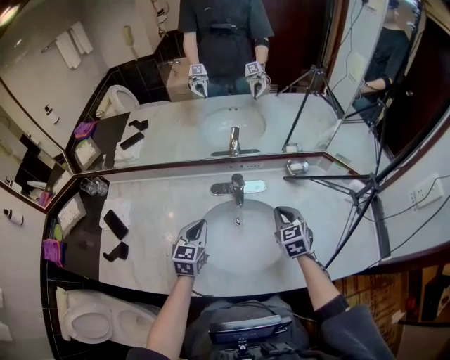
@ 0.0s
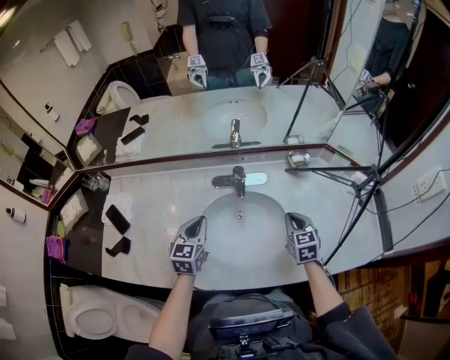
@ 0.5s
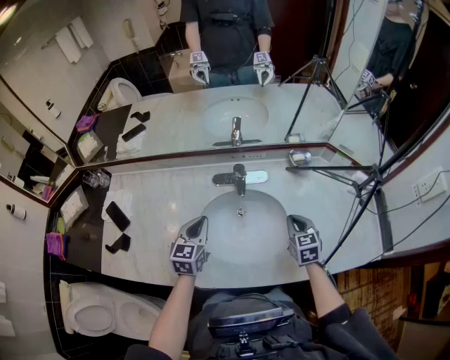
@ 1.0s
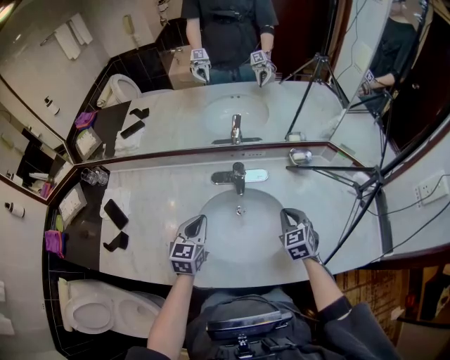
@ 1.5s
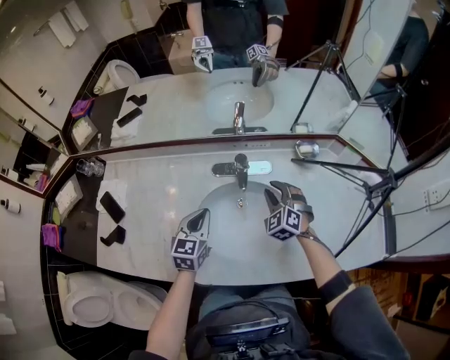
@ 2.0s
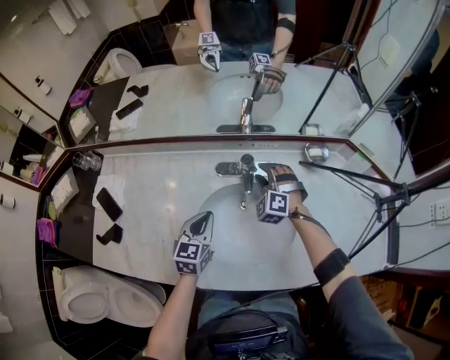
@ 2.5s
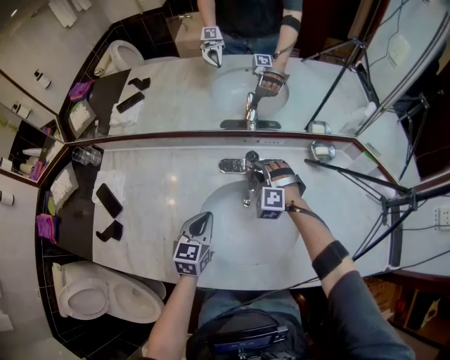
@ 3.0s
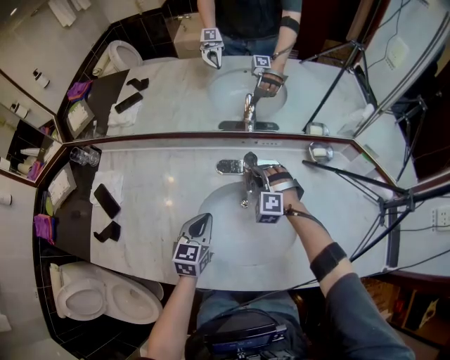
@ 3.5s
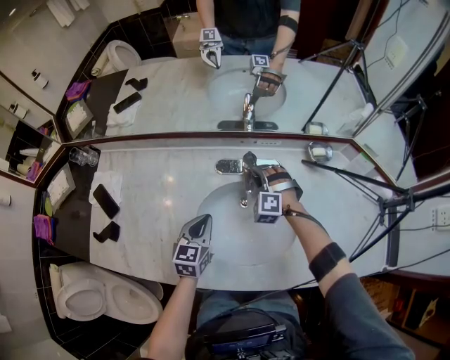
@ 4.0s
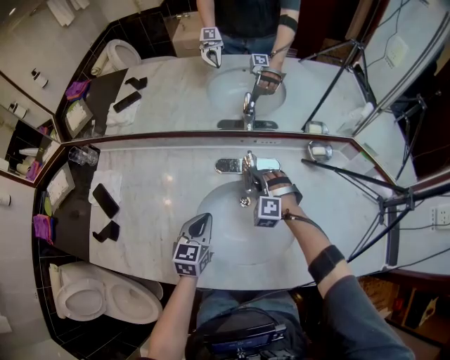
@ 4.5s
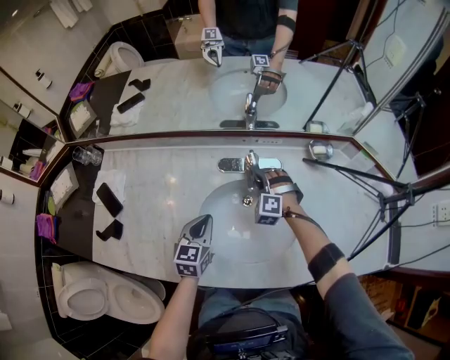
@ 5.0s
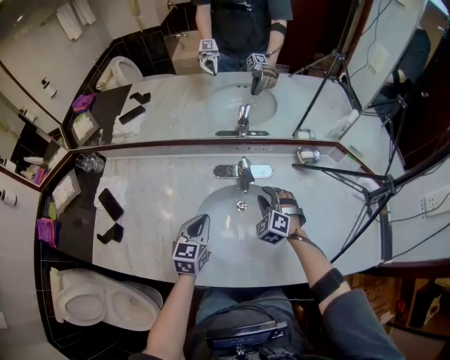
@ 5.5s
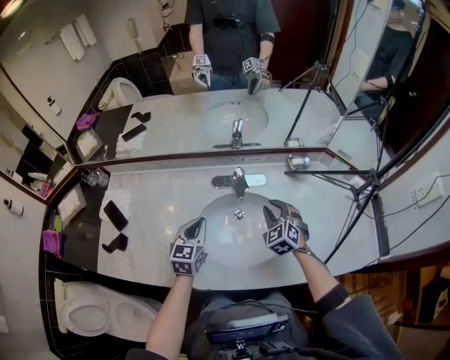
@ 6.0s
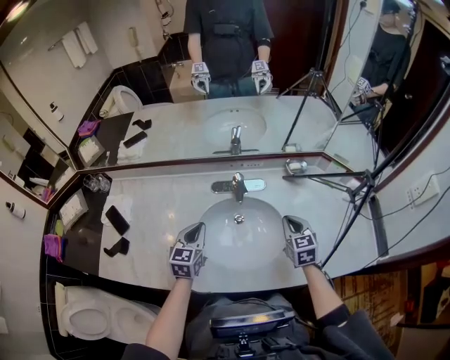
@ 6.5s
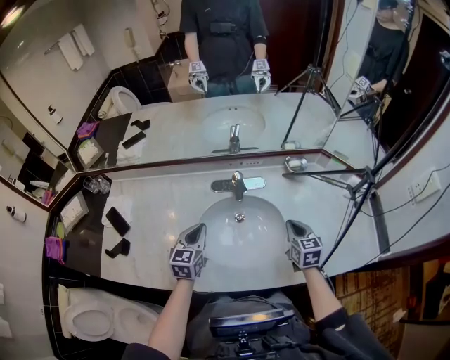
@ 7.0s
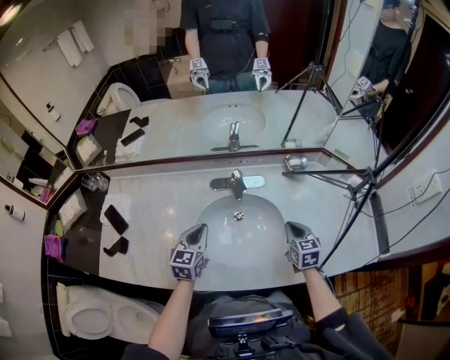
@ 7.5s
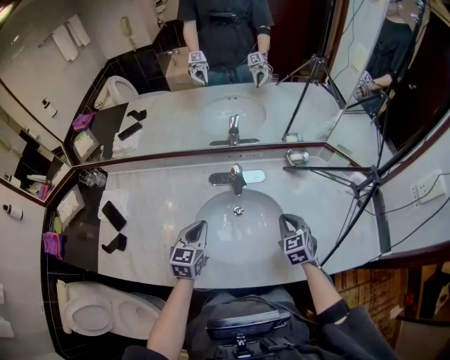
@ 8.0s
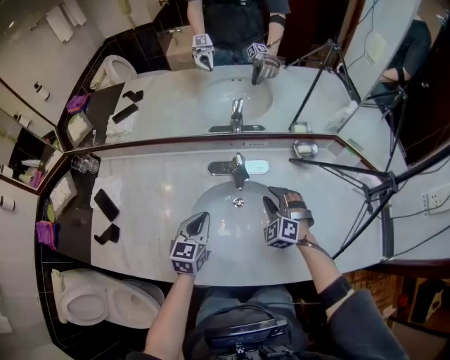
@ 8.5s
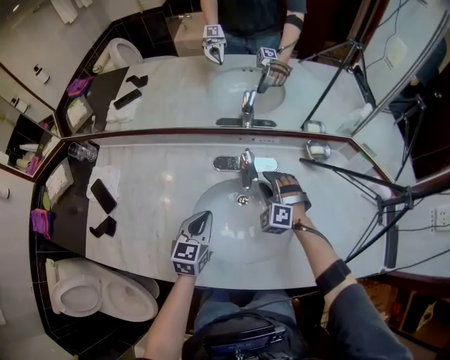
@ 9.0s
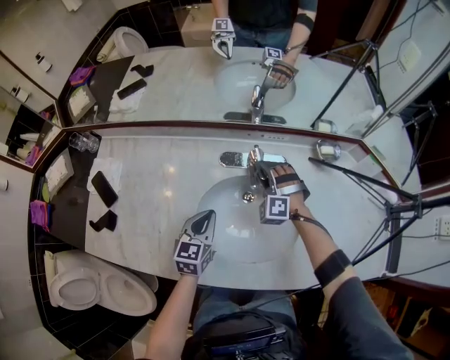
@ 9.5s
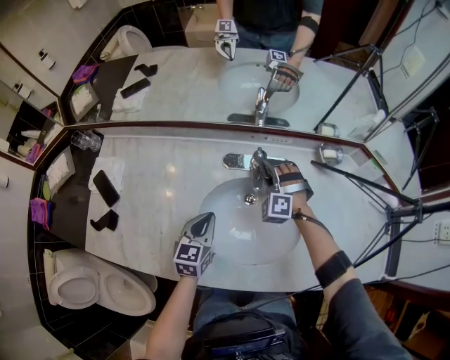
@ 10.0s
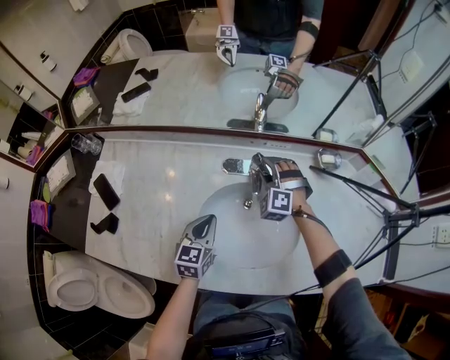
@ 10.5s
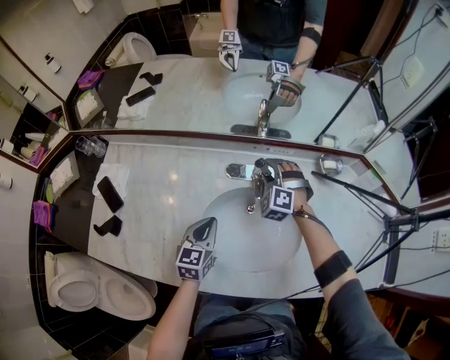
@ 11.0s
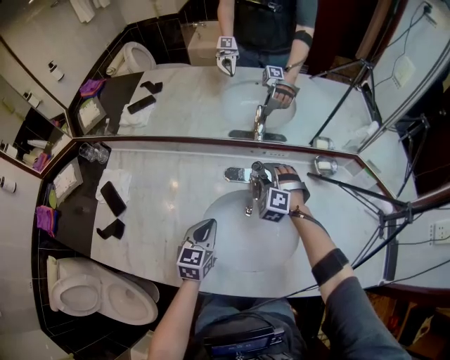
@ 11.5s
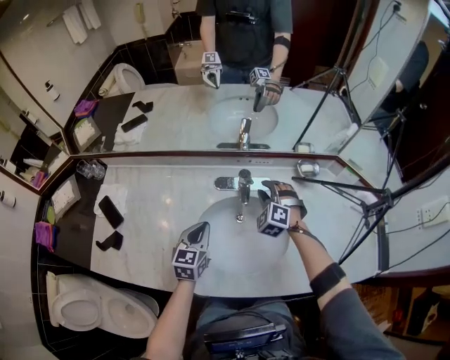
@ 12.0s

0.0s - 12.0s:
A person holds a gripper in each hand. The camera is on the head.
0.0s - 2.0s: The right gripper moves approximately 10 cm, swivels approximately 30 degrees, and opens.
2.0s - 4.0s: The right gripper goes some 15 cm to the left, forward and downward, and changes its angle by about 30 degrees. The left gripper travels downward by roughly 5 cm.
4.0s - 6.0s: The left gripper goes roughly 5 cm upward. The right gripper travels backward, upward and to the right by some 20 cm, and rotates roughly 40 degrees.
6.0s - 8.0s: The right gripper travels to the right by some 5 cm, and turns by about 20 degrees.
8.0s - 10.0s: The left gripper heads downward, covering approximately 10 cm. The right gripper shifts roughly 25 cm forward and to the left, twists about 60 degrees counterclockwise, seen from behind, and opens up.
10.0s - 12.0s: The two grippers go about 5 cm upward. The right gripper closes its fingers.

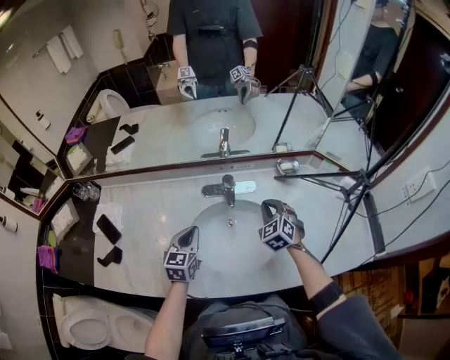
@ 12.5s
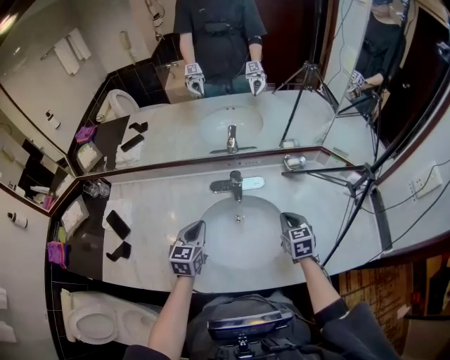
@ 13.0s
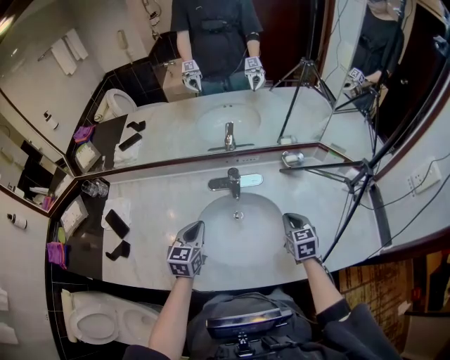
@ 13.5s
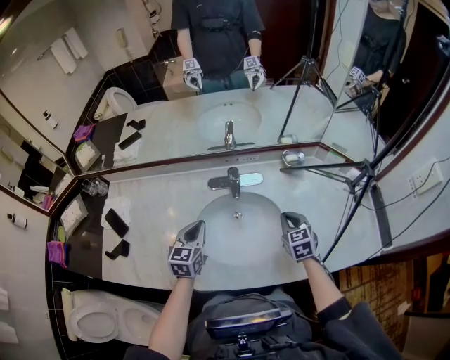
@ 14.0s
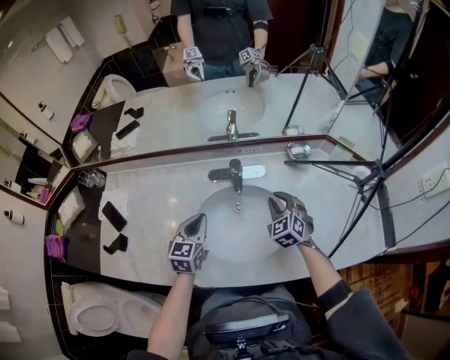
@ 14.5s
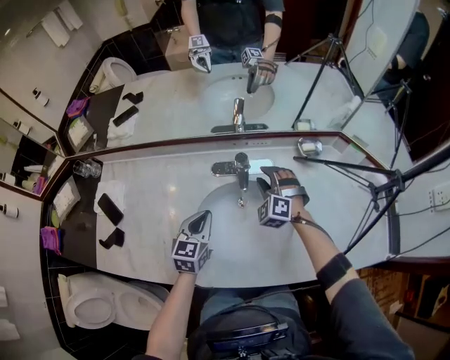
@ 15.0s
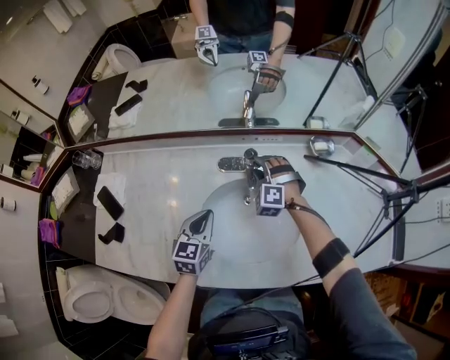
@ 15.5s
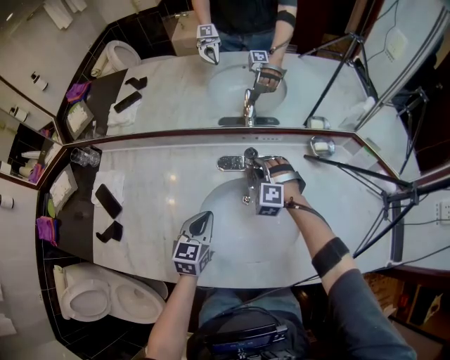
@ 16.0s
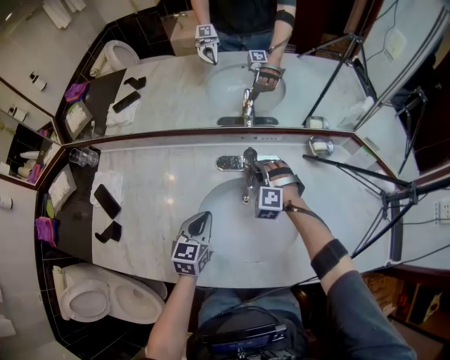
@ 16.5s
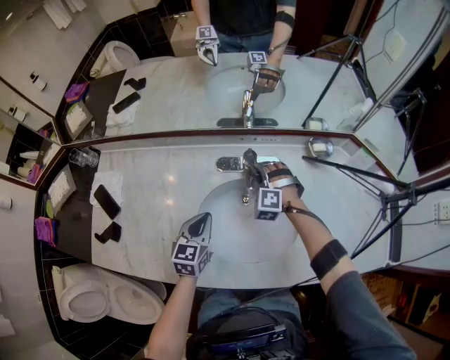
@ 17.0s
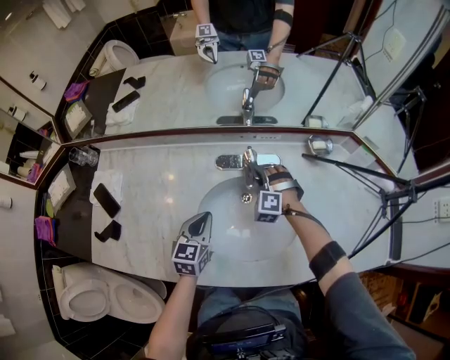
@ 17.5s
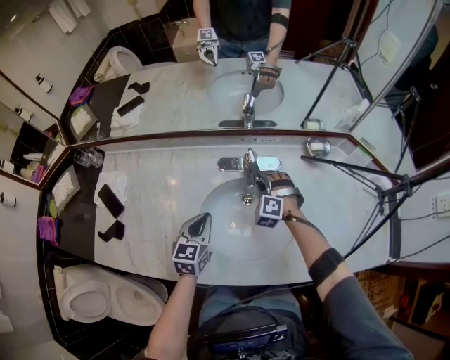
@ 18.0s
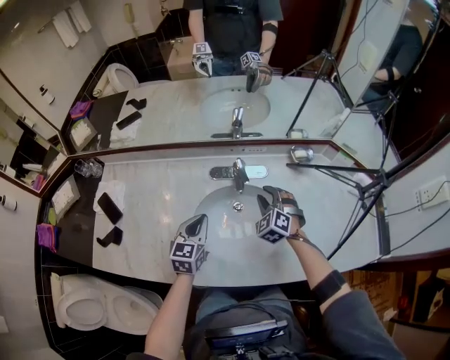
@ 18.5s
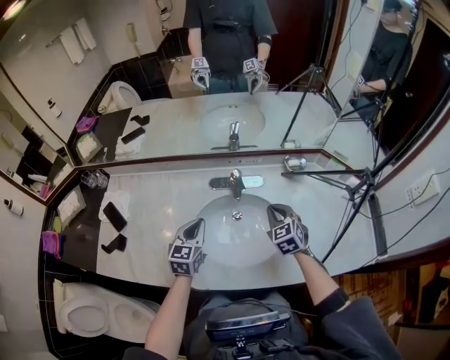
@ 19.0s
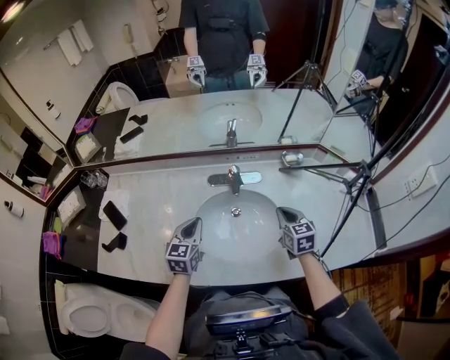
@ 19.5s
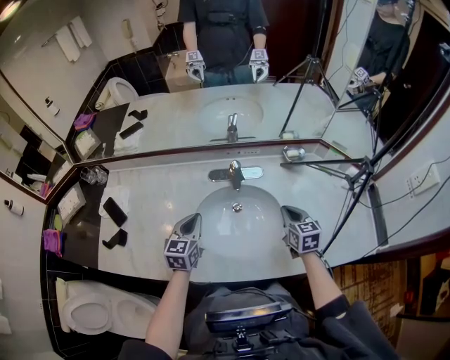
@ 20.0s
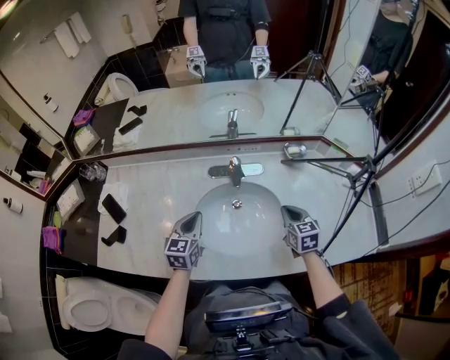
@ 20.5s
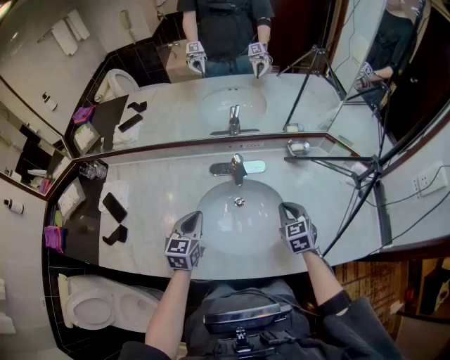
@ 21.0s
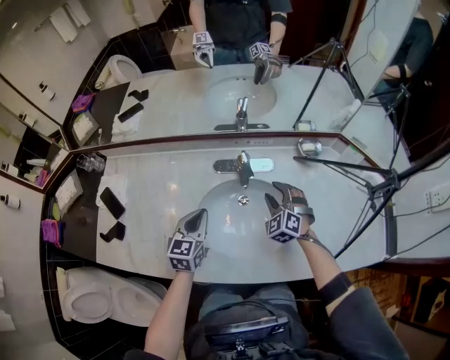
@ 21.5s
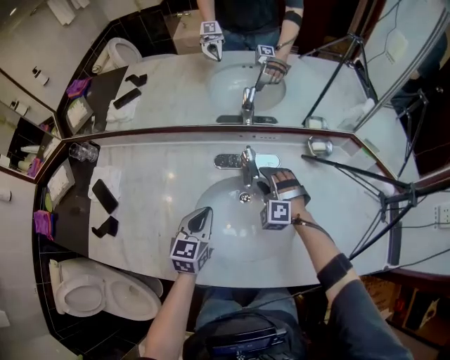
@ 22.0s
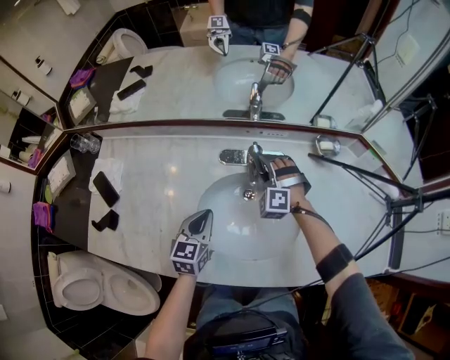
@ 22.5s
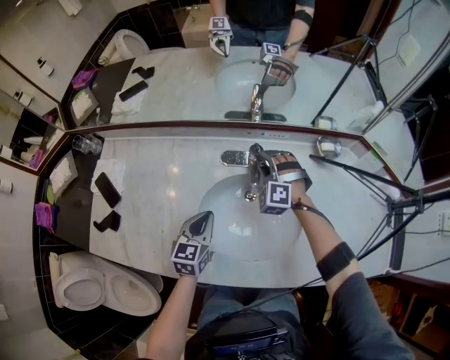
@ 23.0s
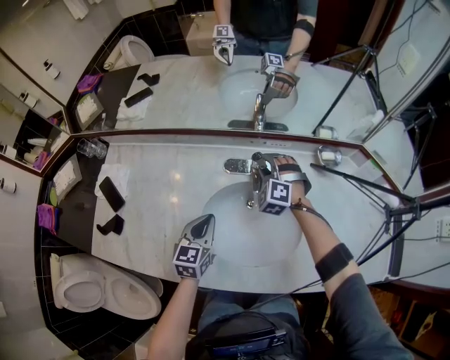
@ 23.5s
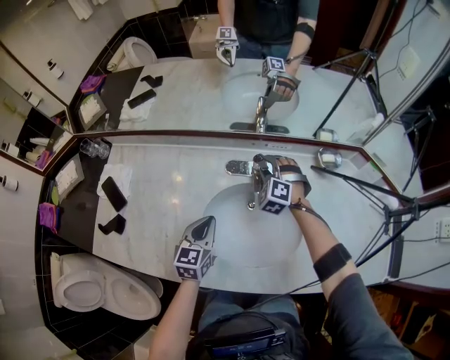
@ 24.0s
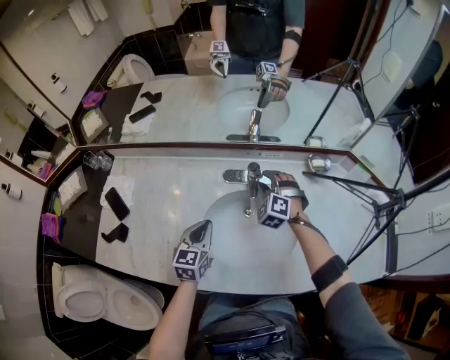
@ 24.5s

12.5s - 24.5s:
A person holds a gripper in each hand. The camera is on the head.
14.5s - 16.5s: The left gripper heads downward, covering roughly 5 cm. Meanwhile the right gripper travels to the left, forward and downward by roughly 20 cm, and twists about 40 degrees counterclockwise, seen from behind.
16.5s - 18.5s: The left gripper changes place by approximately 5 cm. The right gripper is displaced backward, to the right and upward by roughly 15 cm, and changes its angle by approximately 30 degrees.
18.5s - 20.5s: The right gripper goes about 15 cm to the right and backward, twists roughly 50 degrees clockwise, seen from behind, and closes up.
20.5s - 22.5s: The right gripper shifts some 25 cm forward and to the left, twists approximately 80 degrees counterclockwise, seen from behind, and opens up. Meanwhile the left gripper is displaced downward by approximately 10 cm.
22.5s - 24.5s: The right gripper heads upward, covering about 5 cm.

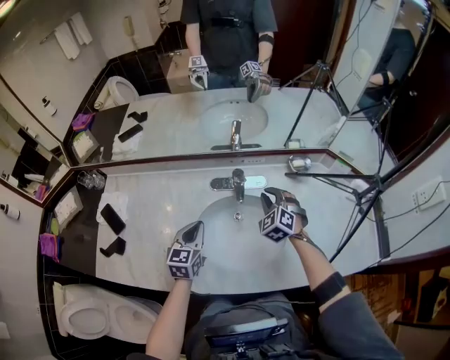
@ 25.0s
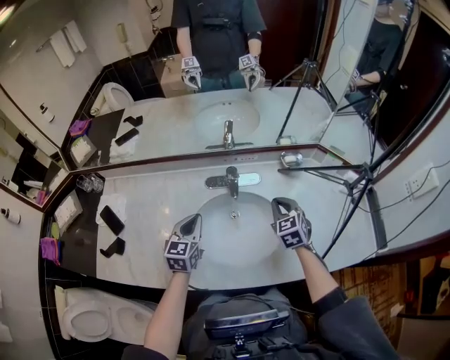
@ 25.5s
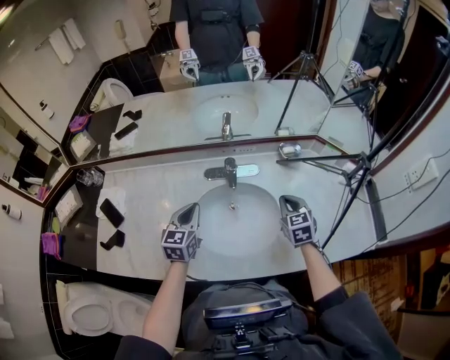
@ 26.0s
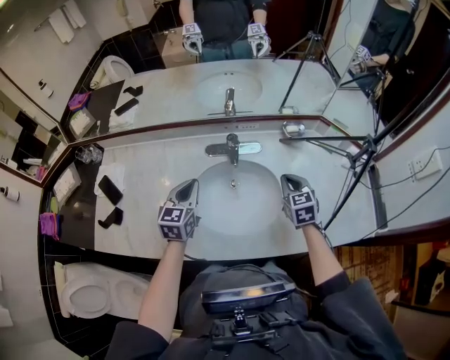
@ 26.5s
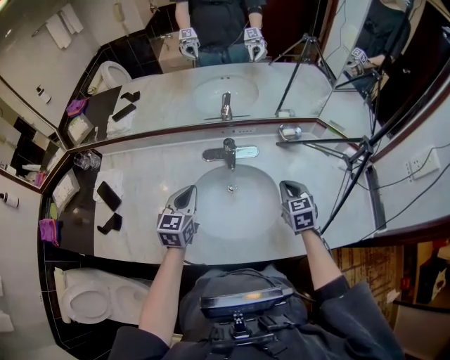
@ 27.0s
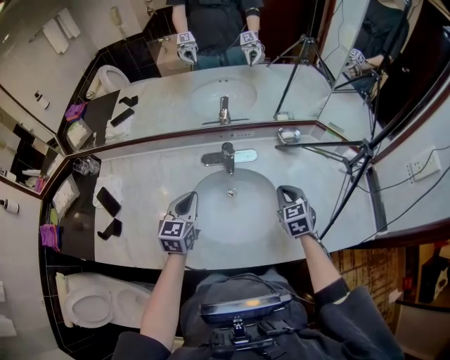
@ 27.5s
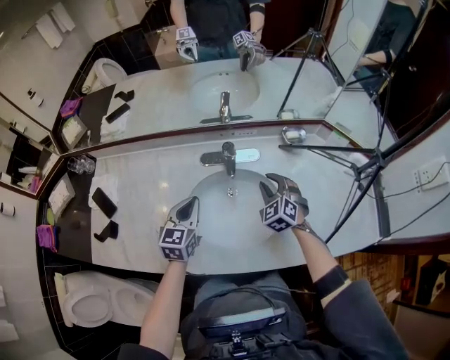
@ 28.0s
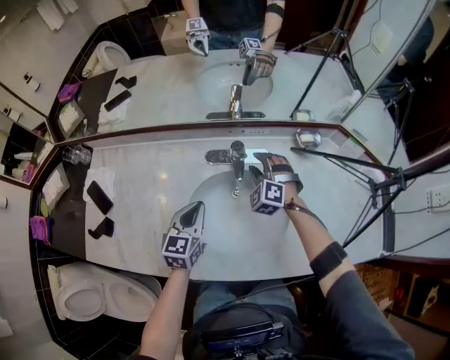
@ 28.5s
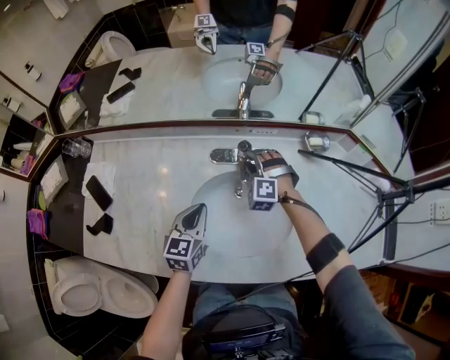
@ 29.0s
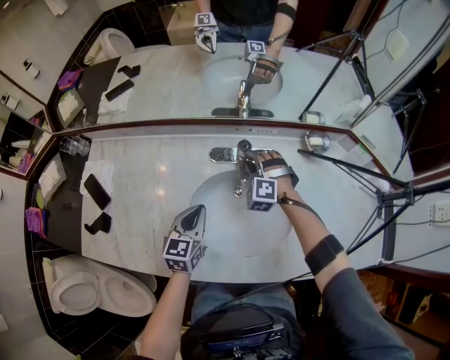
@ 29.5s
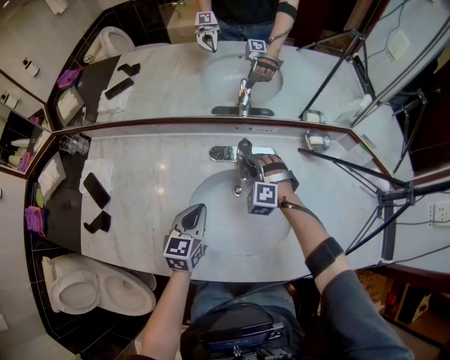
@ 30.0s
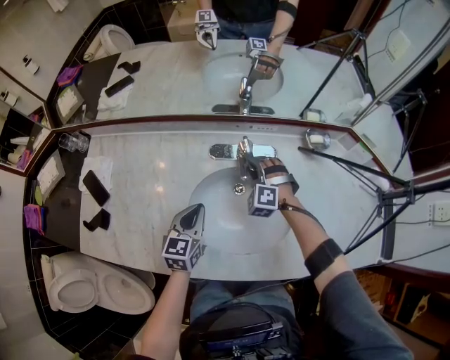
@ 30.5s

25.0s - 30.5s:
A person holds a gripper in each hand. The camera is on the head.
25.0s - 27.0s: The right gripper is displaced to the right and backward by about 15 cm, and turns by some 40 degrees.
27.0s - 28.5s: The left gripper shifts about 5 cm downward; the right gripper goes some 20 cm forward, to the left and downward, twists roughly 60 degrees counterclockwise, seen from behind, and opens.
28.5s - 30.5s: The right gripper moves downward, approximately 5 cm.
